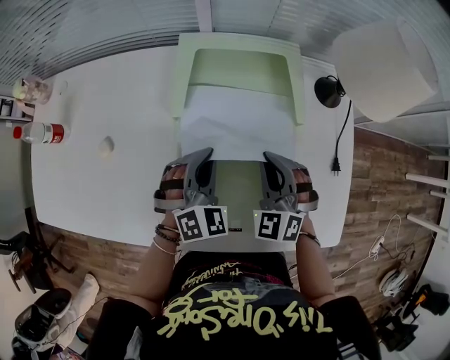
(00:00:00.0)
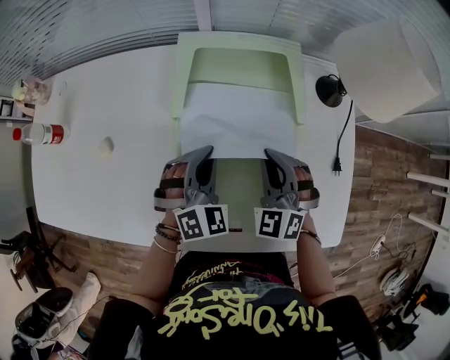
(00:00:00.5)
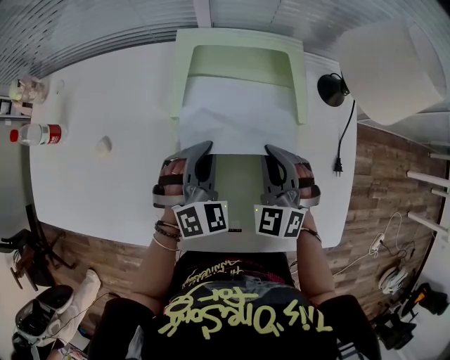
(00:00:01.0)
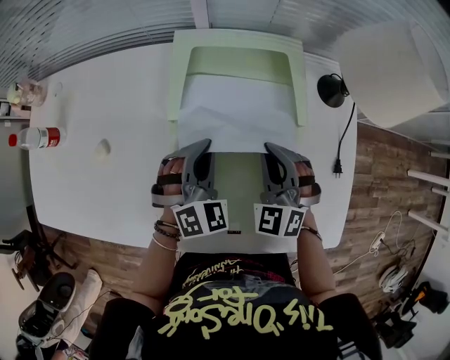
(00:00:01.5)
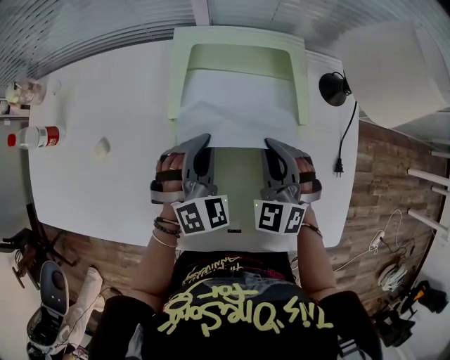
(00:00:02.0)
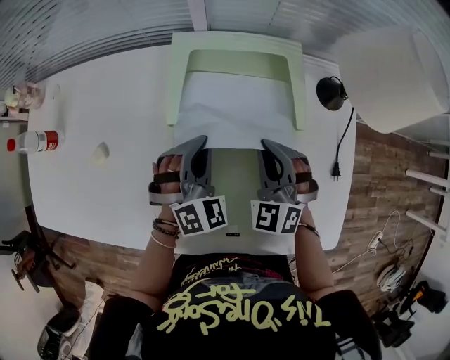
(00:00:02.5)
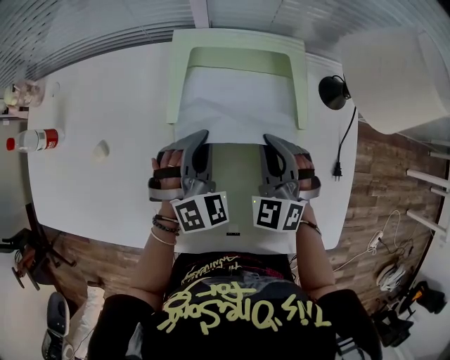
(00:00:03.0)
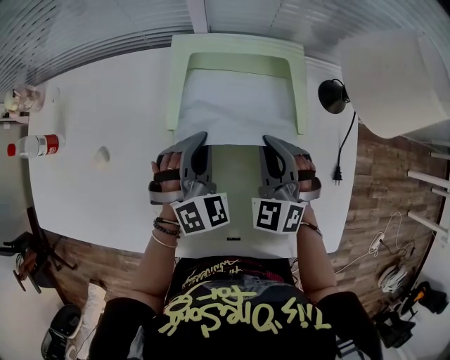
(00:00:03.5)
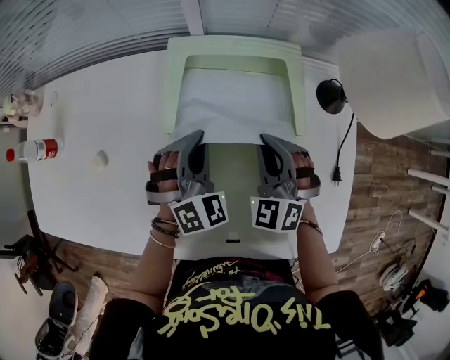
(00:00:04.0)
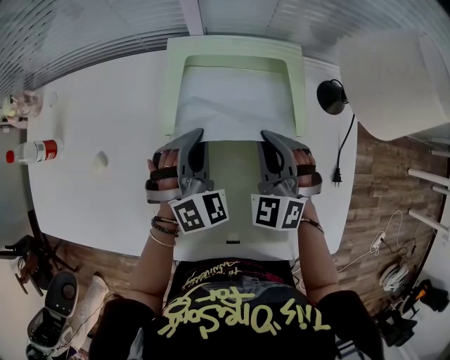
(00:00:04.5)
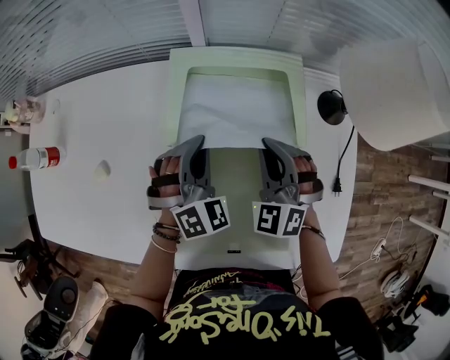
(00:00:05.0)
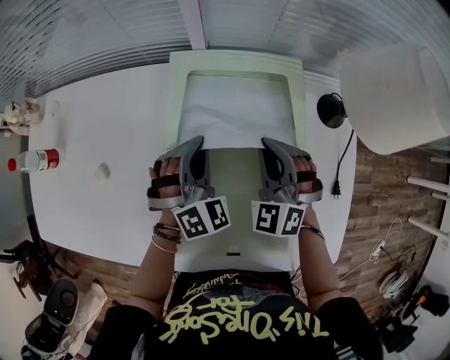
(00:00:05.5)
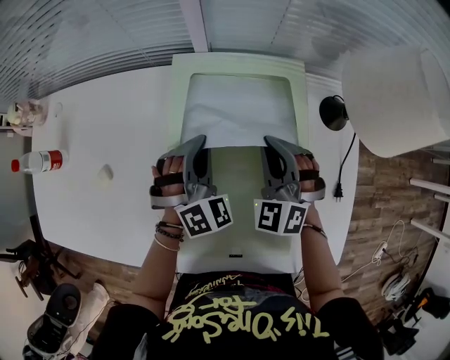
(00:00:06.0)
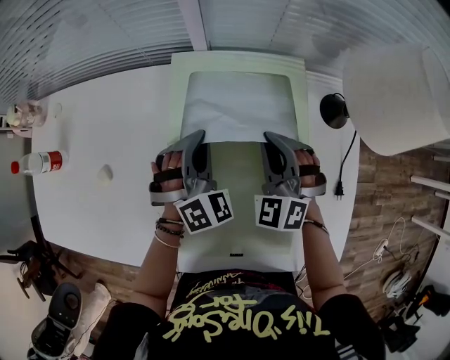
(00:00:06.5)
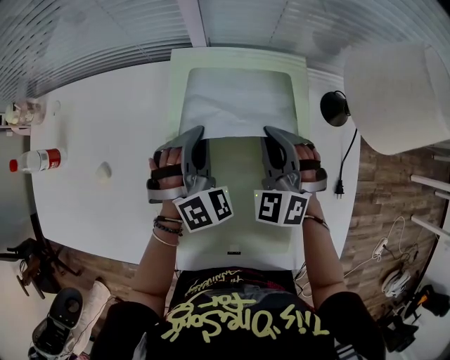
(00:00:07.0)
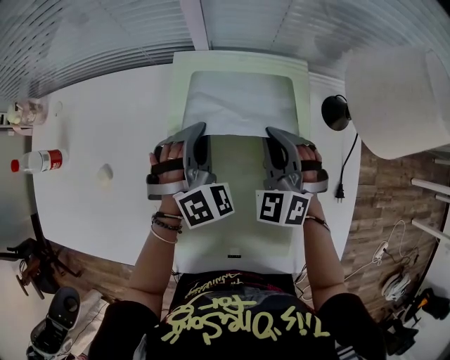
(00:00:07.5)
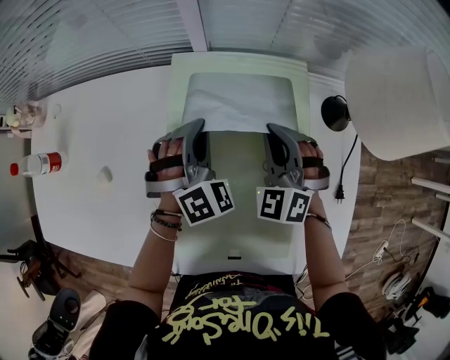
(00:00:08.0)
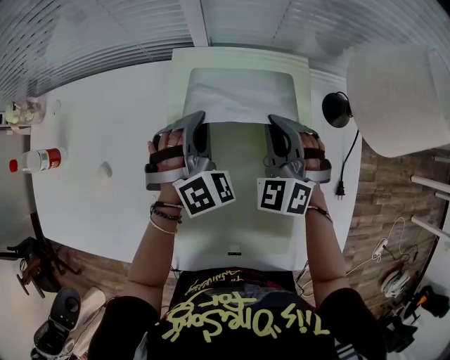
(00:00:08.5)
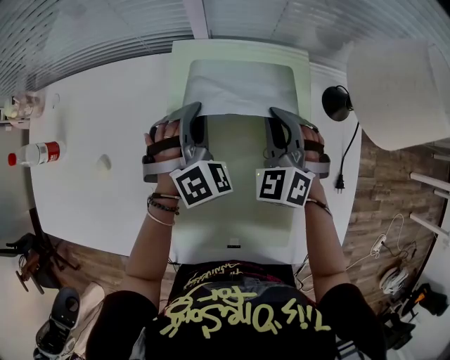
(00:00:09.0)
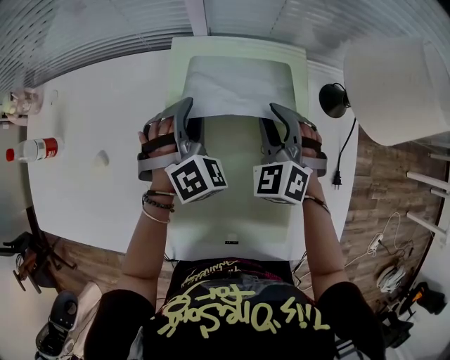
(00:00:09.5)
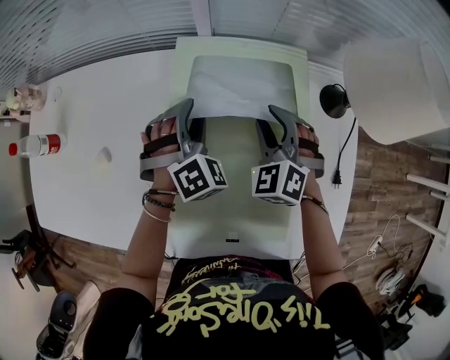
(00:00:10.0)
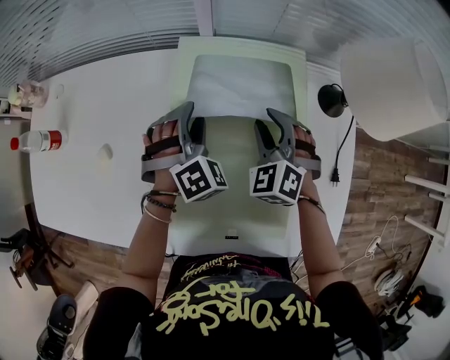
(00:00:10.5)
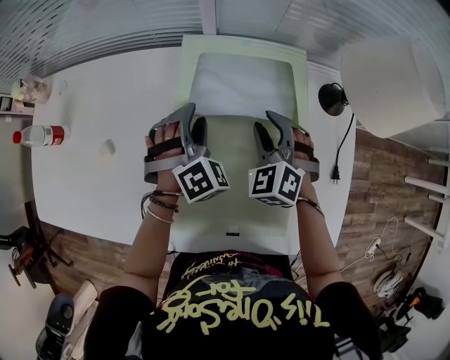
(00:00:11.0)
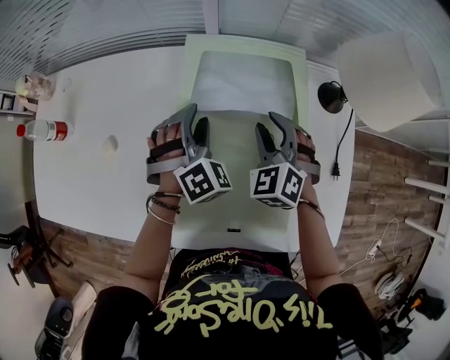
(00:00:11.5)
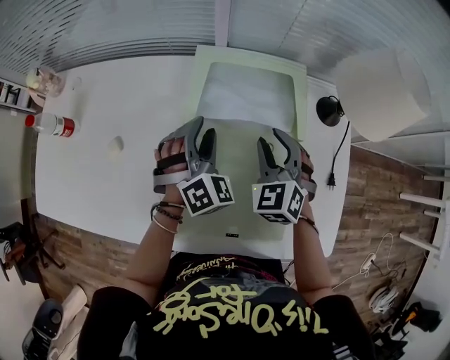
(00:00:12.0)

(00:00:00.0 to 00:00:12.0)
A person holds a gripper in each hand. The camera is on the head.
00:00:00.0 - 00:00:02.0: The grippers stay close to where they were, moving slightly.
00:00:02.0 - 00:00:04.0: The grippers move only a little.
00:00:04.0 - 00:00:06.0: There are only small adjustments of the grippers.
00:00:06.0 - 00:00:08.0: The grippers make only small movements.
00:00:08.0 - 00:00:10.0: The left gripper opens, while the right gripper opens up.
00:00:10.0 - 00:00:12.0: The right gripper ends up about 5 cm from where it was. Meanwhile the left gripper ends up about 5 cm from where it was.

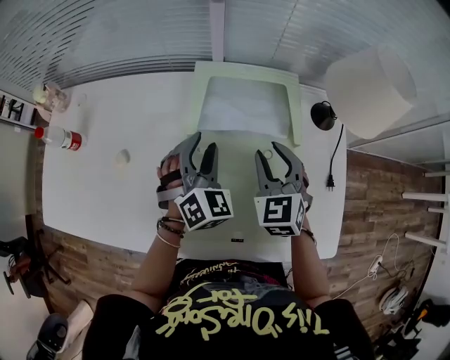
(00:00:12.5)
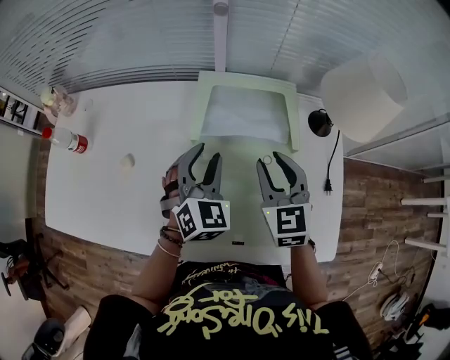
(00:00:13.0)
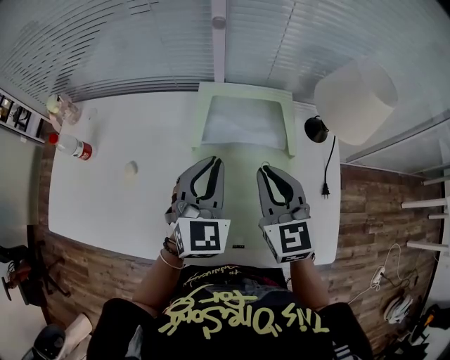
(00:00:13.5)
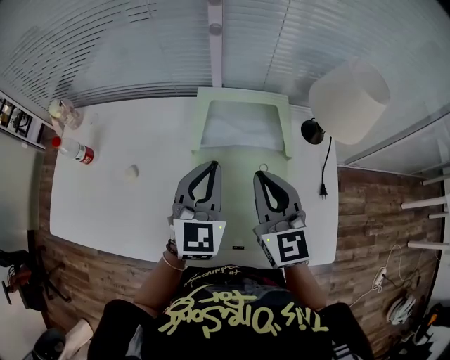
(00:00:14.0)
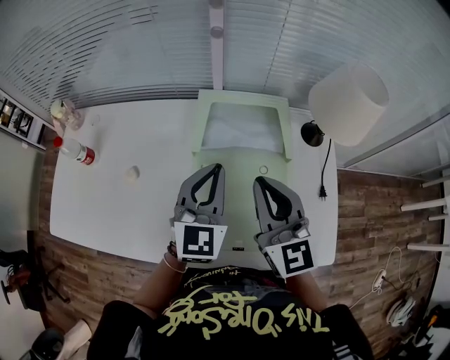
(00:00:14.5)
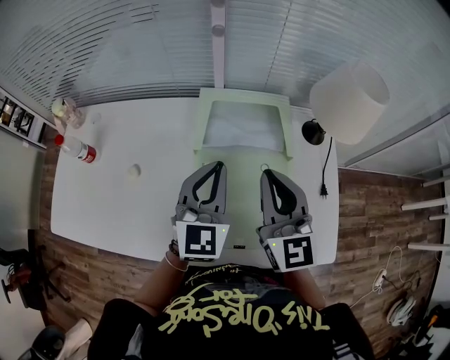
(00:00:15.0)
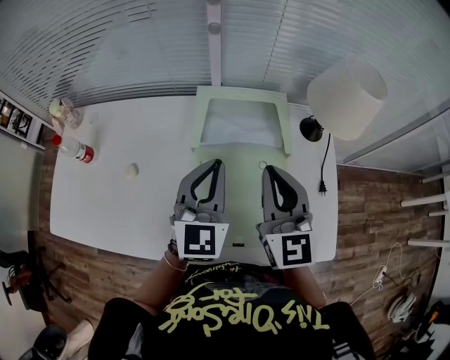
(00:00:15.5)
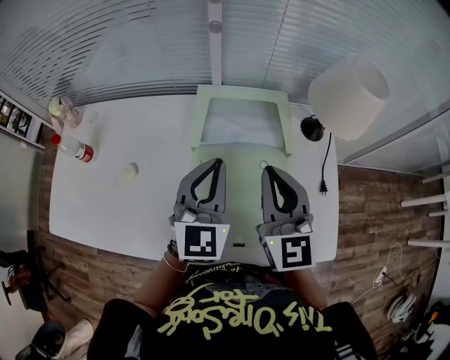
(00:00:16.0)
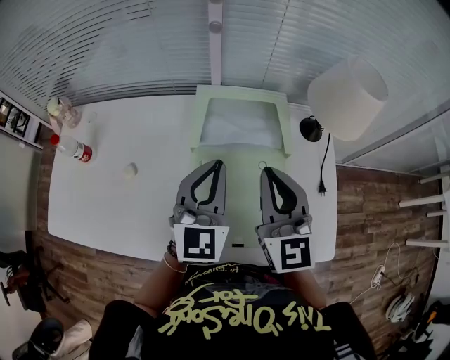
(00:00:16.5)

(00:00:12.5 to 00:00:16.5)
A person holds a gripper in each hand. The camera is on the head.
00:00:12.5 - 00:00:14.5: The two grippers go approximately 15 cm upward and backward. The right gripper swivels approximately 40 degrees, and closes its fingers. The left gripper rotates about 40 degrees, and closes its fingers.
00:00:14.5 - 00:00:16.5: The grippers stay close to where they were, moving slightly.

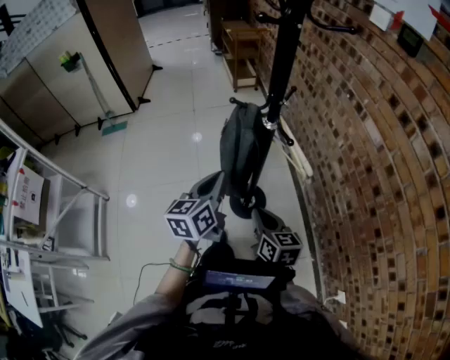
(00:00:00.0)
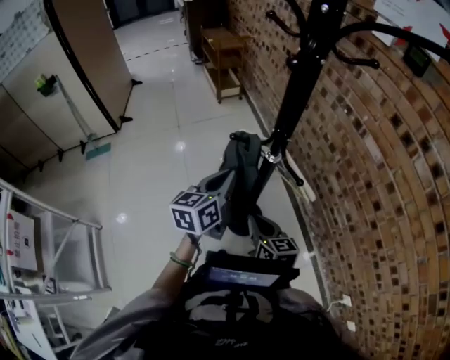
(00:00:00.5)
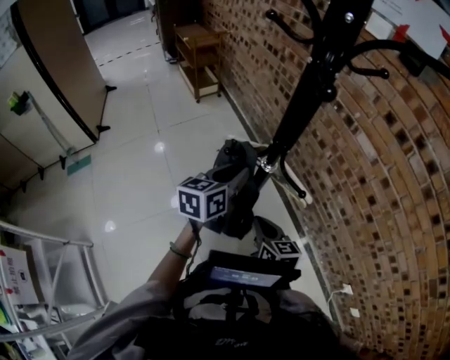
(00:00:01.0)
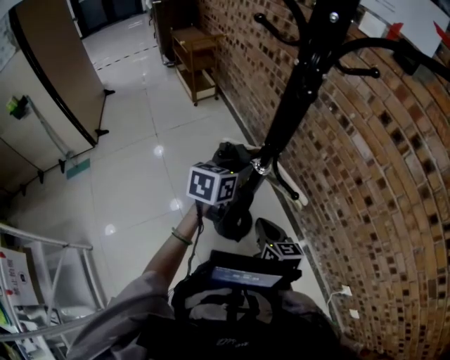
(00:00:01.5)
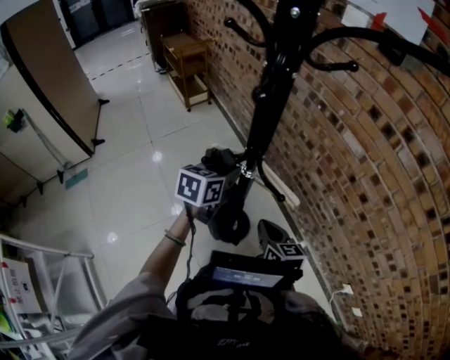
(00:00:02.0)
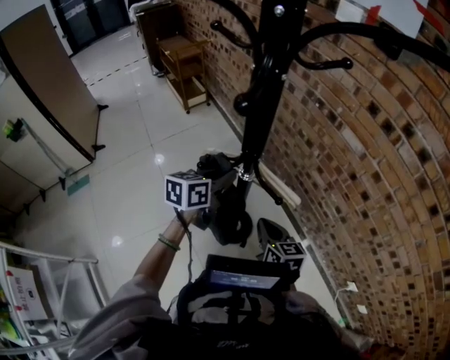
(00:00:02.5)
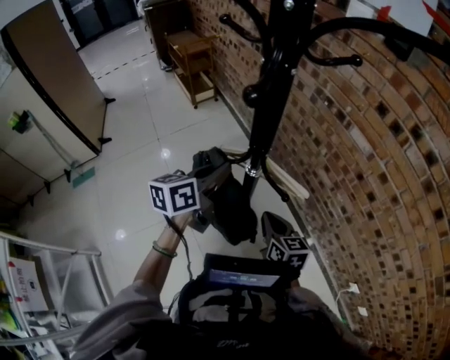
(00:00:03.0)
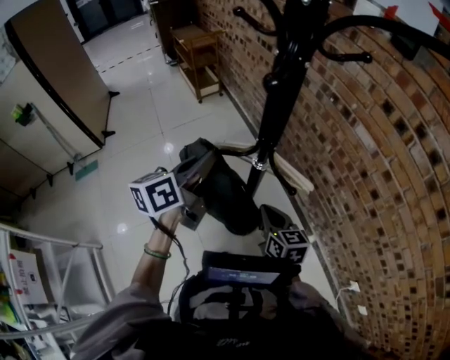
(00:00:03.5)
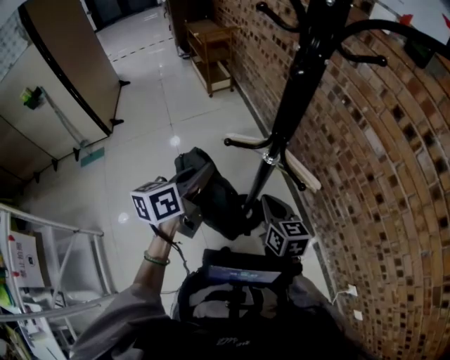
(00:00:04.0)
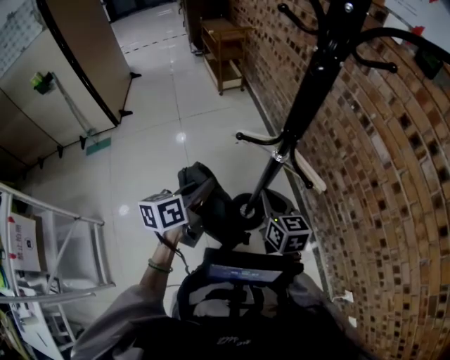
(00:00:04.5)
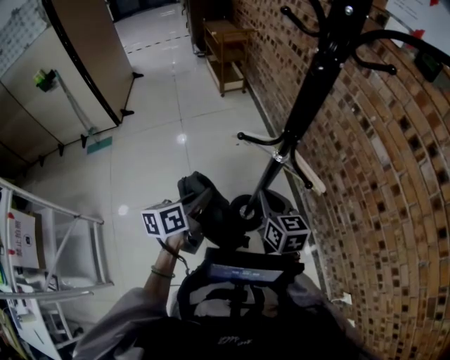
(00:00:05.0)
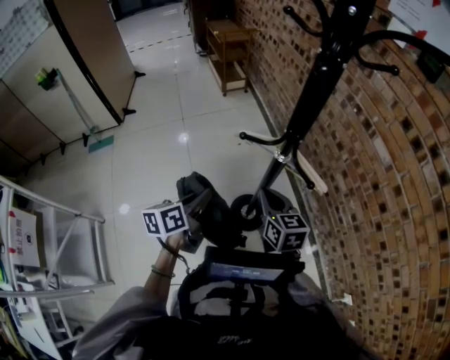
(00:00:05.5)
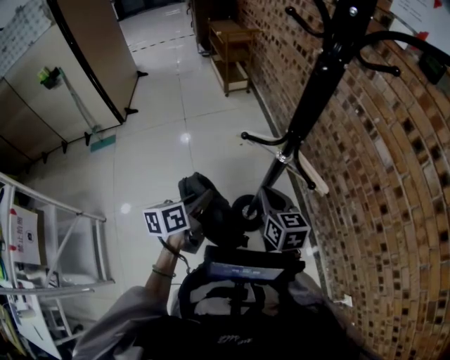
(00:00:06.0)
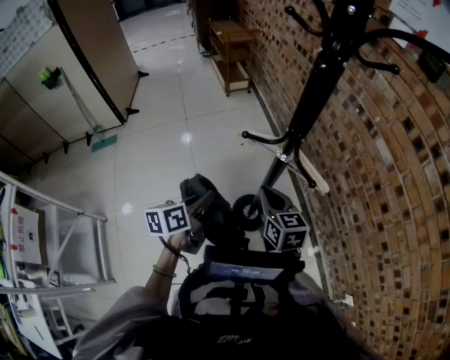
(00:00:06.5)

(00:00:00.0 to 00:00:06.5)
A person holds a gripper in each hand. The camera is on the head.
00:00:00.0 - 00:00:02.0: The left gripper moves about 20 cm, and rotates some 40 degrees, while the right gripper shifts by some 10 cm.
00:00:02.0 - 00:00:04.5: The left gripper heads backward and to the left, covering about 20 cm, and swivels about 30 degrees. The right gripper shifts roughly 10 cm to the left.
00:00:04.5 - 00:00:06.5: The left gripper goes approximately 5 cm downward.

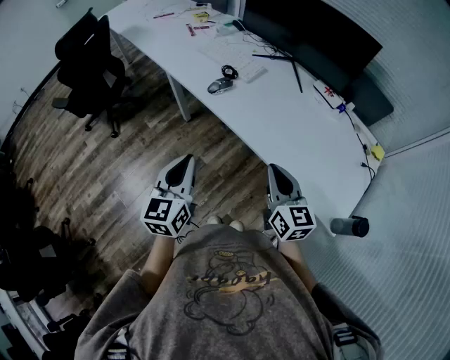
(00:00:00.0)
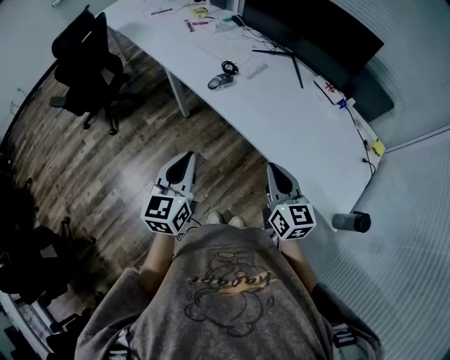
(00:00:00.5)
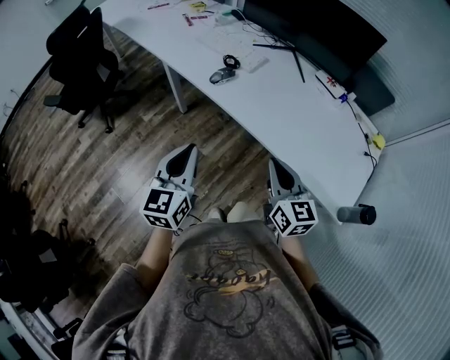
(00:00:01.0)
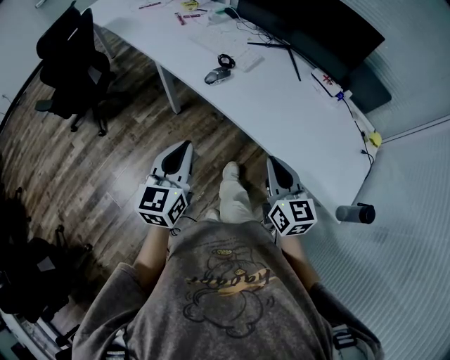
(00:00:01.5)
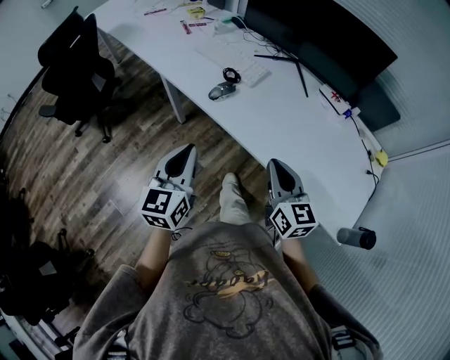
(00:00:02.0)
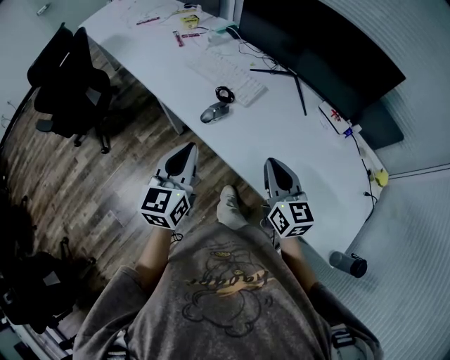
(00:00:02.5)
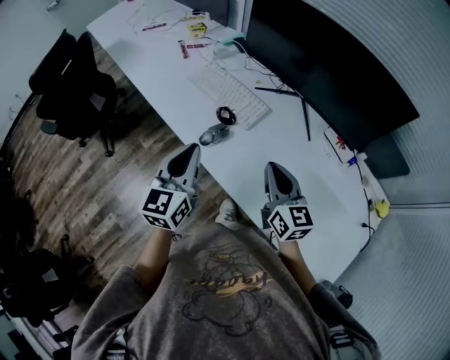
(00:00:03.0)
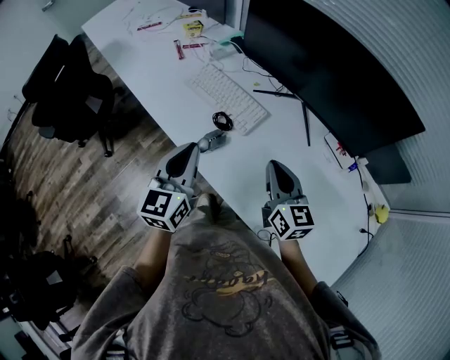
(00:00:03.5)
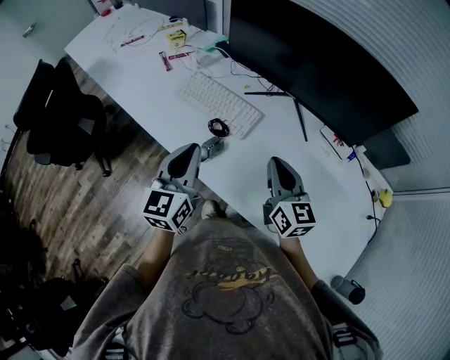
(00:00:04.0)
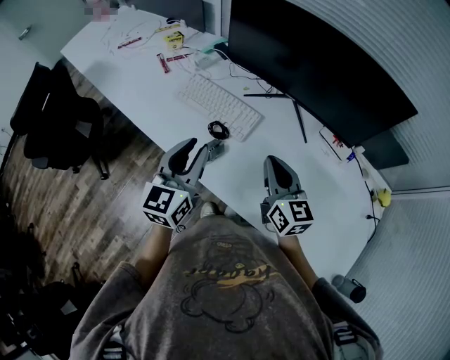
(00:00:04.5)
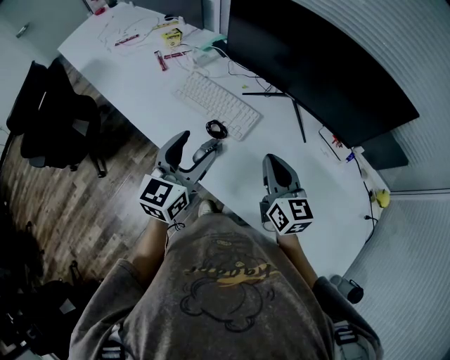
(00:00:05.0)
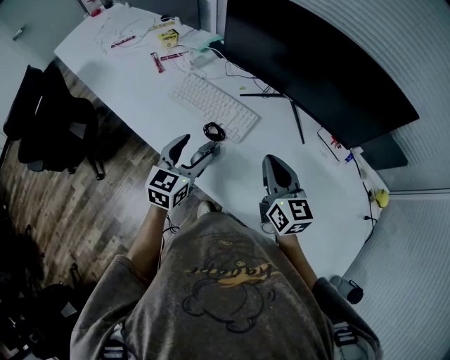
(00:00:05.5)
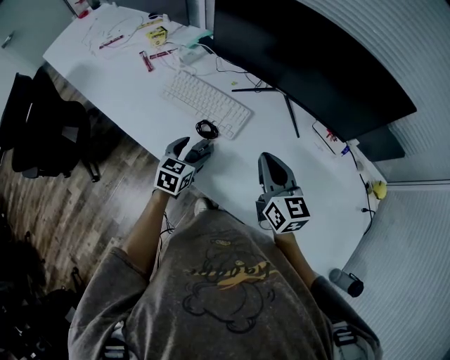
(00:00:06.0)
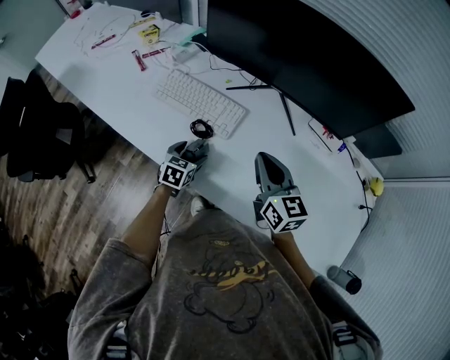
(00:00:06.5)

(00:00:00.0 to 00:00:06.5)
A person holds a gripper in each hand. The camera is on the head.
00:00:00.0 - 00:00:02.0: The grippers both shift forward by some 10 cm.
00:00:02.0 - 00:00:04.5: Both grippers travel together forward, roughly 25 cm.
00:00:04.5 - 00:00:06.5: The left gripper shifts about 30 cm downward, tips its fingers downward by about 40 degrees, and opens up.
